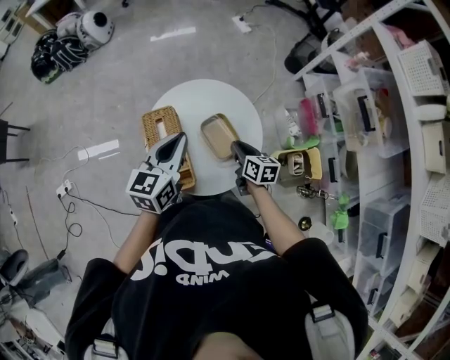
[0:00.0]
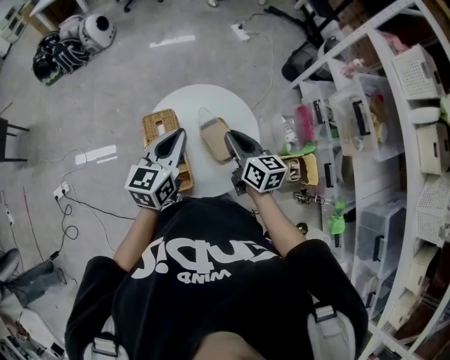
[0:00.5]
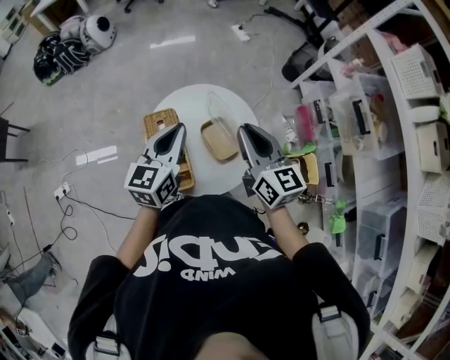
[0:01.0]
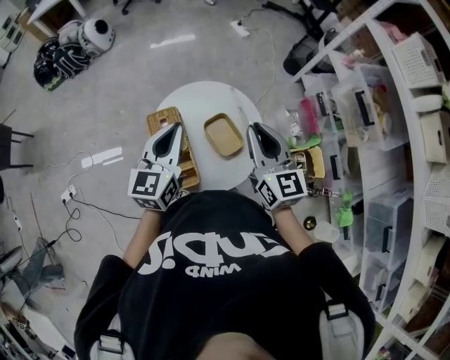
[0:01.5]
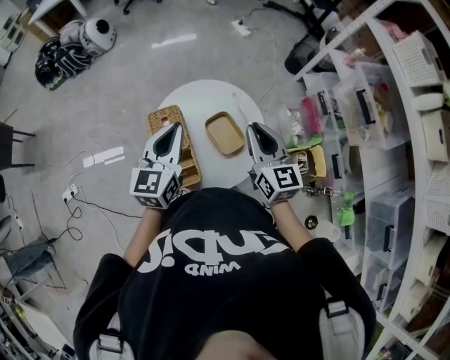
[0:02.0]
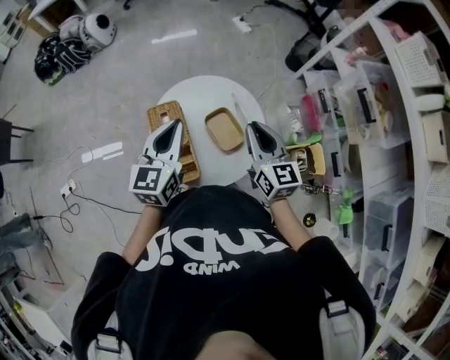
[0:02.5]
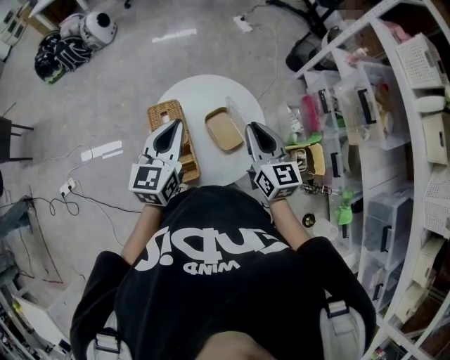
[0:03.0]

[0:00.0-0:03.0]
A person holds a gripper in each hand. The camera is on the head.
0:00.0 to 0:01.5: The right gripper heads upward, covering about 25 cm, and swivels some 40 degrees; the left gripper is displaced upward by approximately 5 cm.
0:01.5 to 0:03.0: The right gripper moves downward, roughly 5 cm.

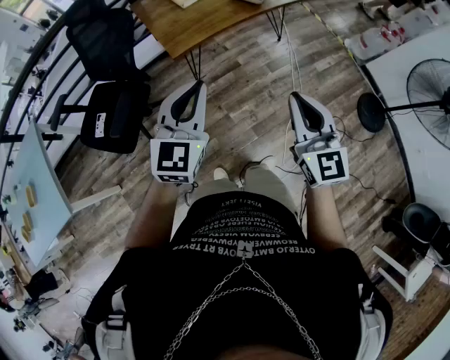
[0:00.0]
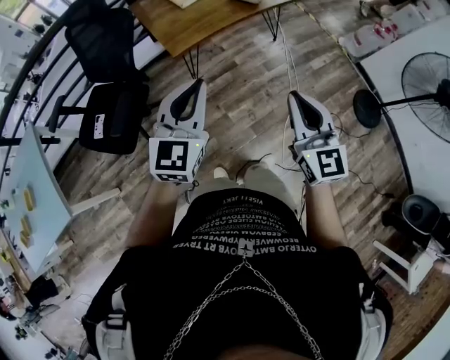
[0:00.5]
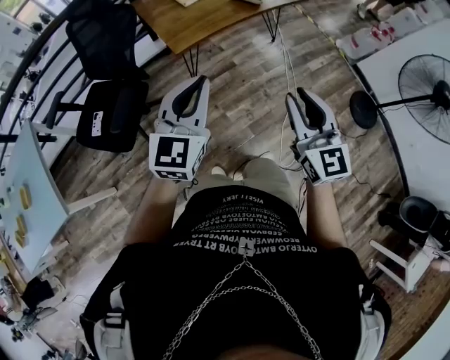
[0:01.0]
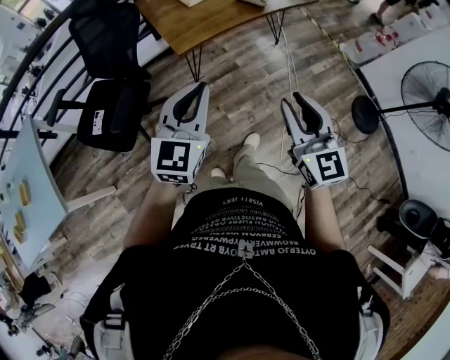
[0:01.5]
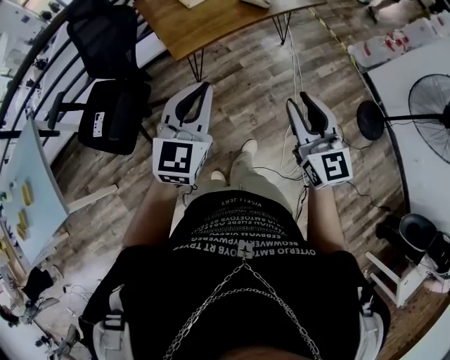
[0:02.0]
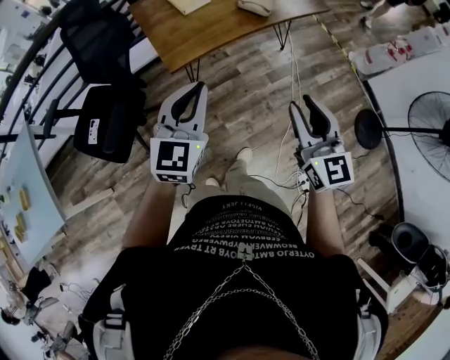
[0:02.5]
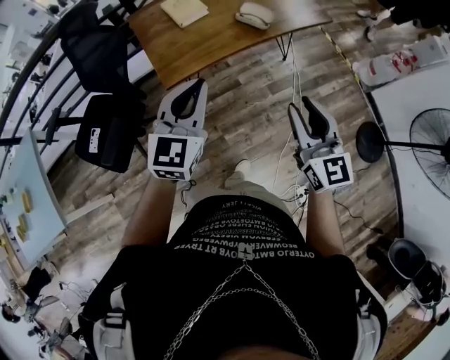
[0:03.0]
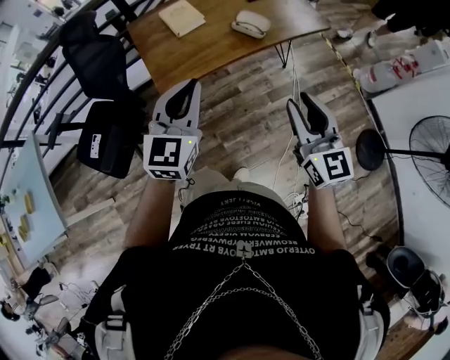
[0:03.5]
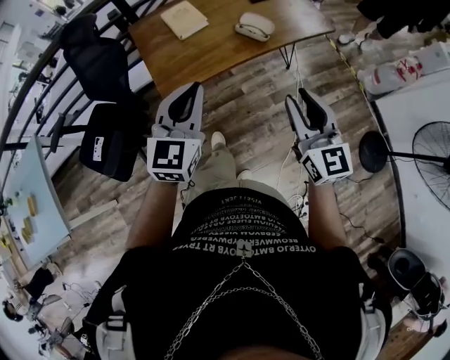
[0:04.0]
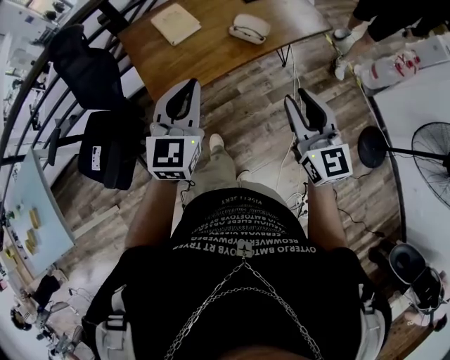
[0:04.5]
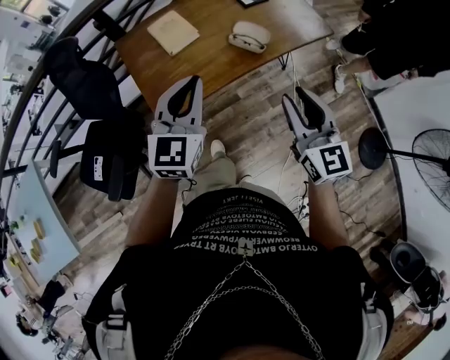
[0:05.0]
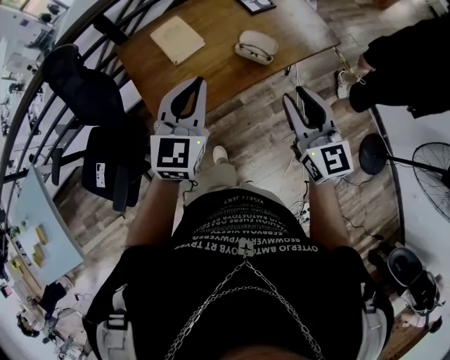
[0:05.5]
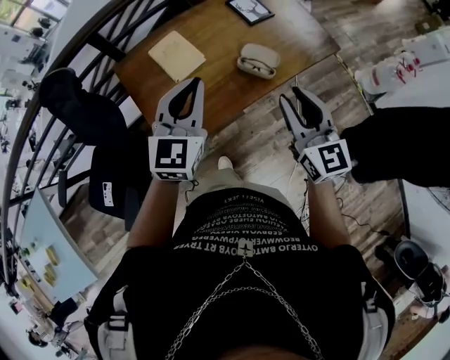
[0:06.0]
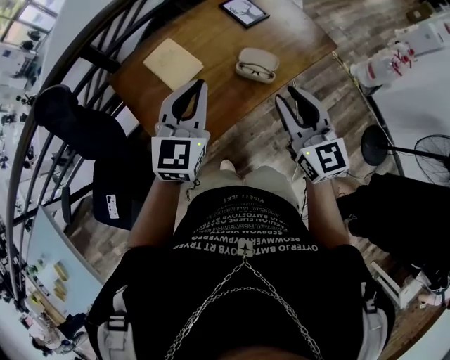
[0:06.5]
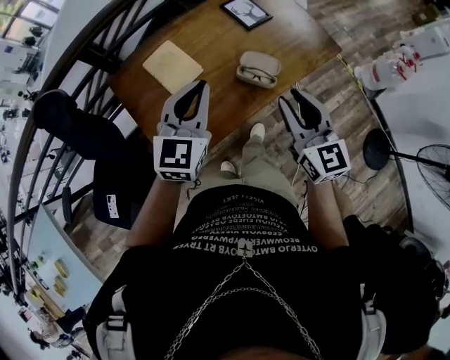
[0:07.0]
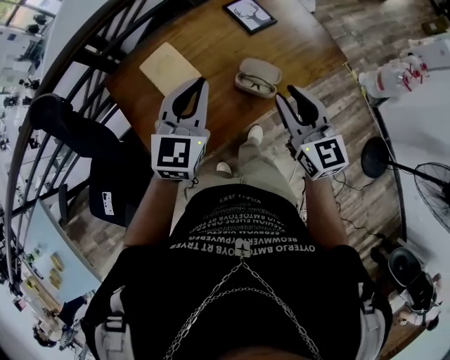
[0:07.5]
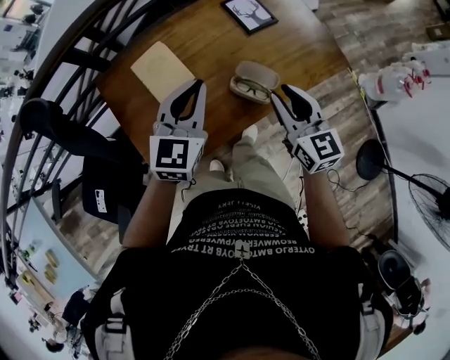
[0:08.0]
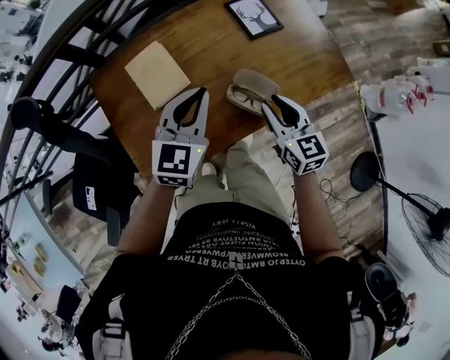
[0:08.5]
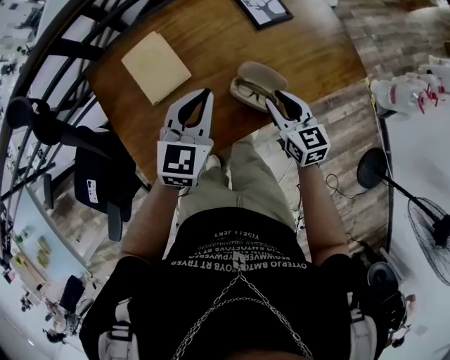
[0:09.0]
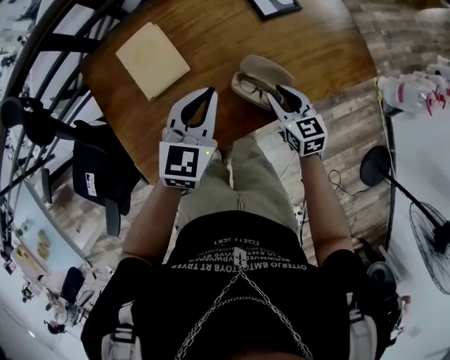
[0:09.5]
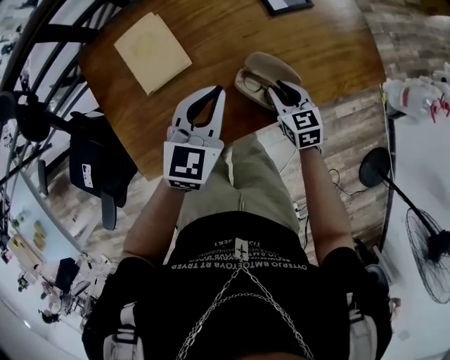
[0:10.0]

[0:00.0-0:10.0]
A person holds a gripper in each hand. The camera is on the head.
0:00.0 to 0:02.0: The right gripper opens.
0:02.0 to 0:04.0: The right gripper travels forward and to the right by approximately 25 cm; the left gripper travels forward by approximately 20 cm.
0:04.0 to 0:06.0: The two grippers go roughly 25 cm forward.
0:06.0 to 0:08.0: Both grippers travel together forward and downward, about 20 cm.
0:08.0 to 0:10.0: The right gripper moves downward, about 25 cm, and turns by approximately 30 degrees, while the left gripper is displaced downward by some 15 cm.

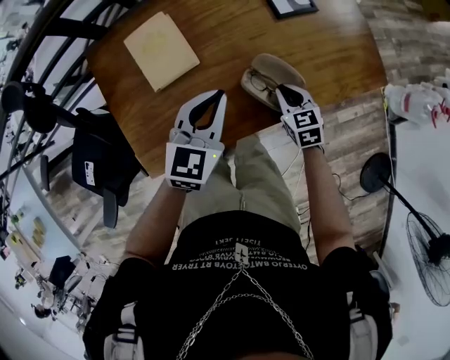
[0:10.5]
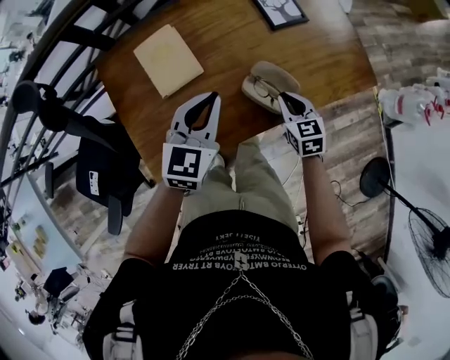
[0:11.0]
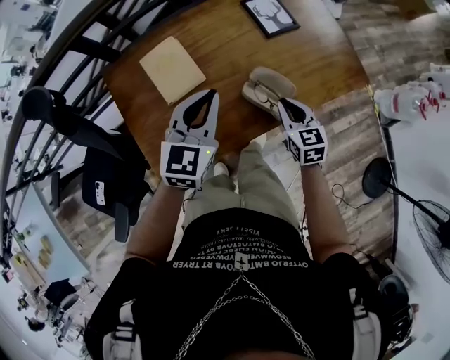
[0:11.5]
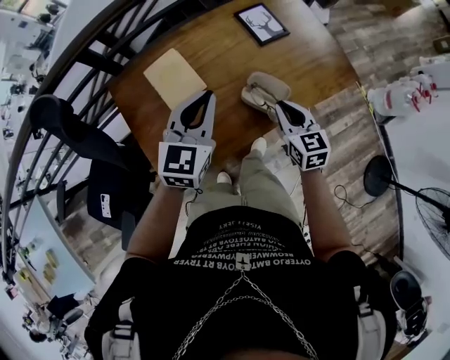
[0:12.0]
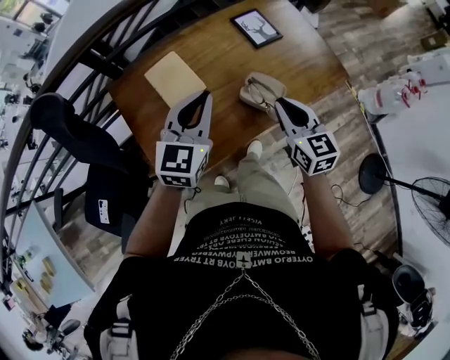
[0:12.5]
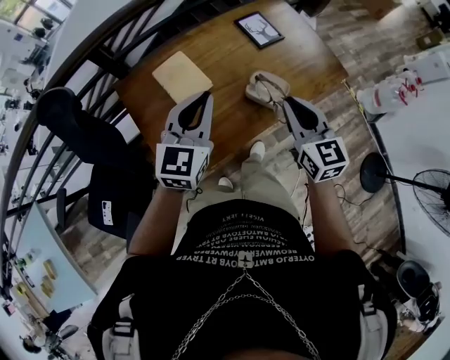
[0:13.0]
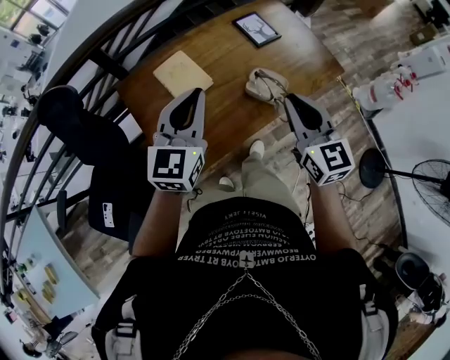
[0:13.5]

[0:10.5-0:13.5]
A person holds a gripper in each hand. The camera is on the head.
0:10.5 to 0:12.0: Both grippers travel together upward, about 15 cm. The right gripper turns by approximately 20 degrees.
0:12.0 to 0:13.5: The right gripper heads upward and backward, covering roughly 20 cm, while the left gripper goes about 15 cm upward, to the left and backward.

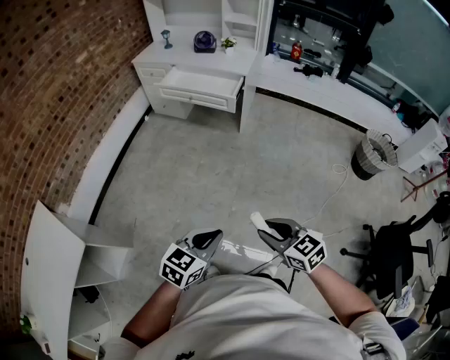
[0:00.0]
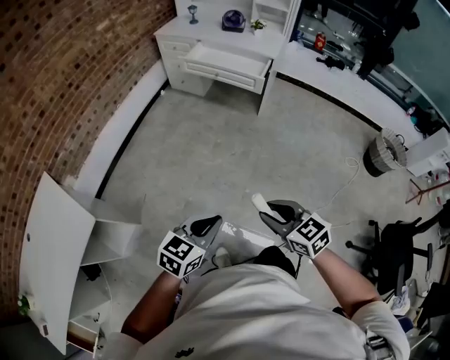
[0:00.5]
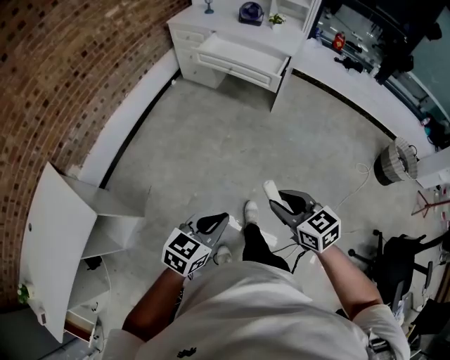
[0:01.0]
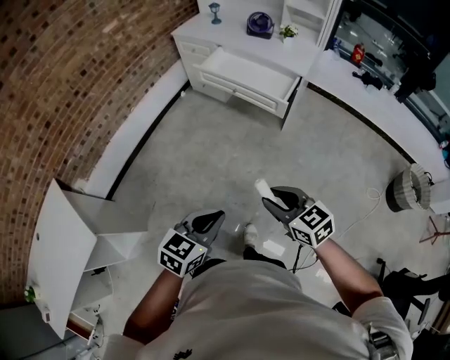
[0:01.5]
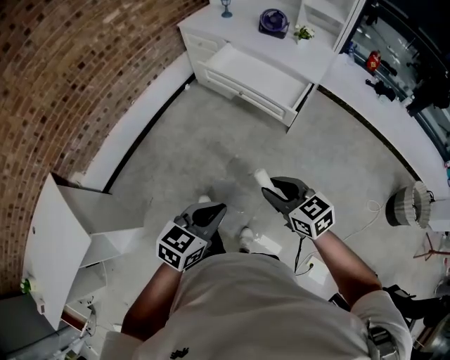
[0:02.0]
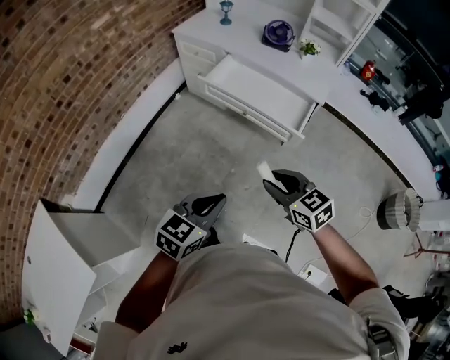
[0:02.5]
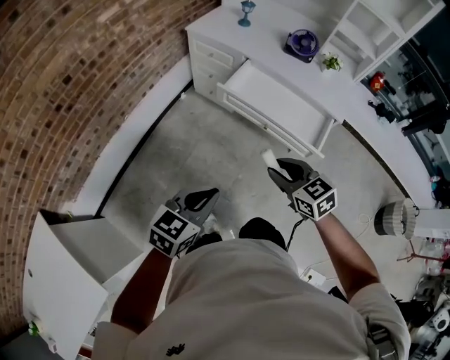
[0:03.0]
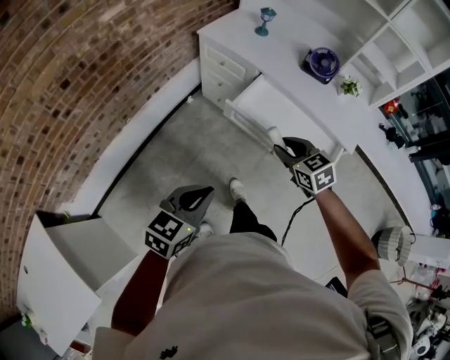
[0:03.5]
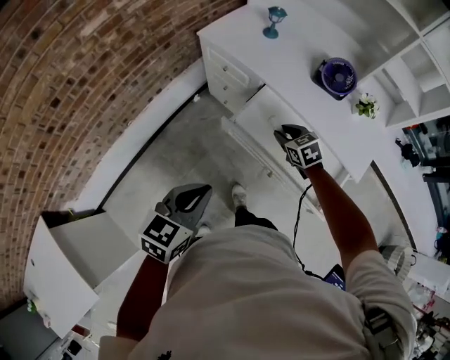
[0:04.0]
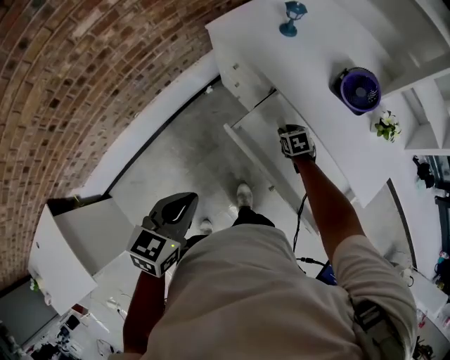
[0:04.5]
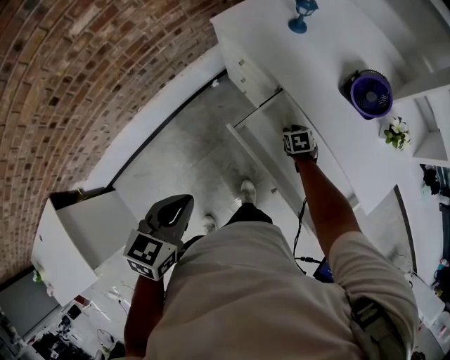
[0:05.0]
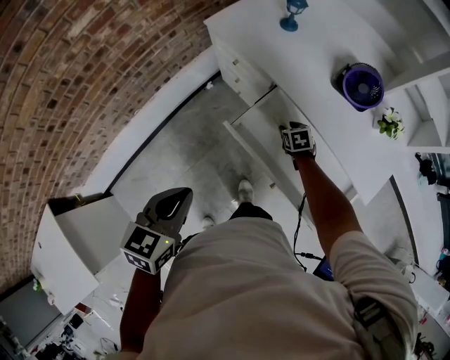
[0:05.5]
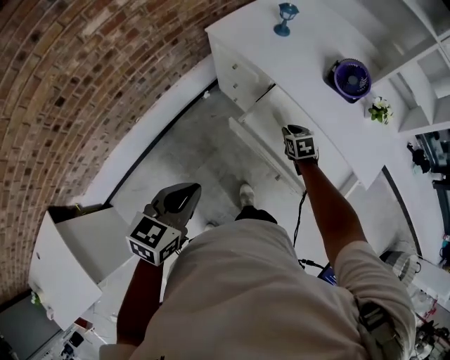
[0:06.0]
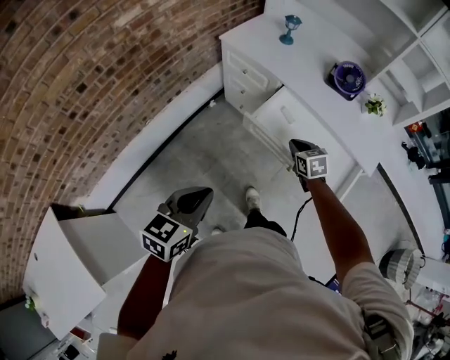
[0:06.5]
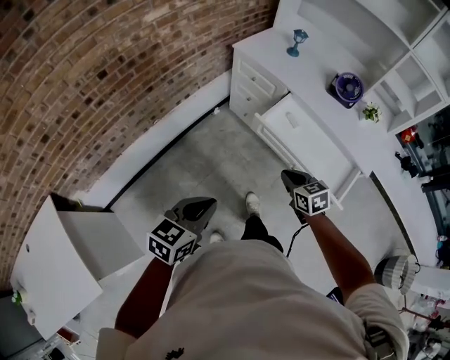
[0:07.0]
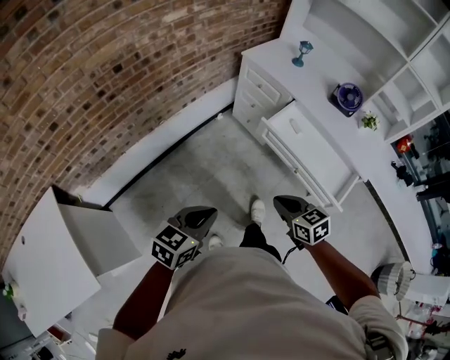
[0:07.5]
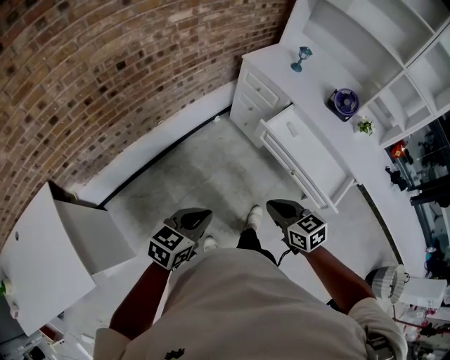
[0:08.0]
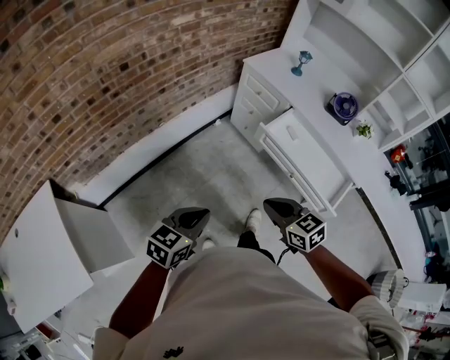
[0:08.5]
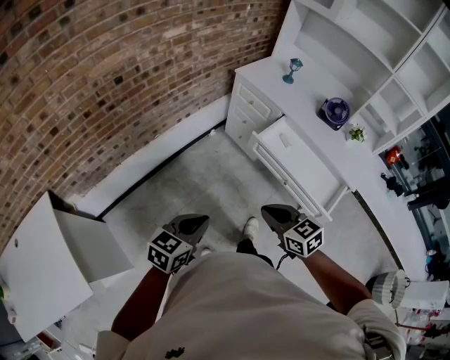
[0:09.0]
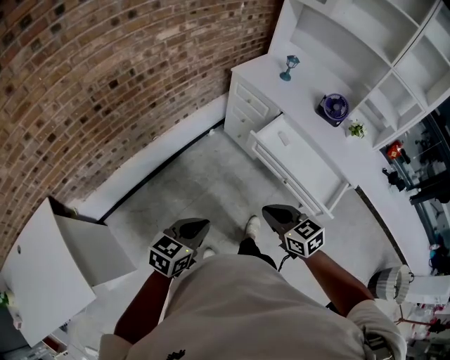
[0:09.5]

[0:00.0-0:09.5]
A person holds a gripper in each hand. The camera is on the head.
0:00.0 to 0:02.0: The grippers both shift forward by roughly 35 cm.
0:02.0 to 0:04.0: The two grippers travel together, forward, approximately 60 cm. The right gripper swivels about 20 degrees.
0:04.0 to 0:05.5: The left gripper travels forward by roughly 5 cm, while the right gripper is displaced downward and forward by approximately 20 cm.
0:05.5 to 0:07.5: The right gripper is displaced backward, upward and to the left by approximately 50 cm, rotates approximately 30 degrees, and closes. Meanwhile the left gripper goes about 30 cm backward and to the left.
0:07.5 to 0:09.5: The right gripper shifts some 5 cm upward.

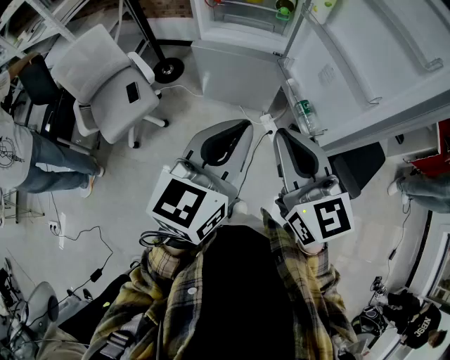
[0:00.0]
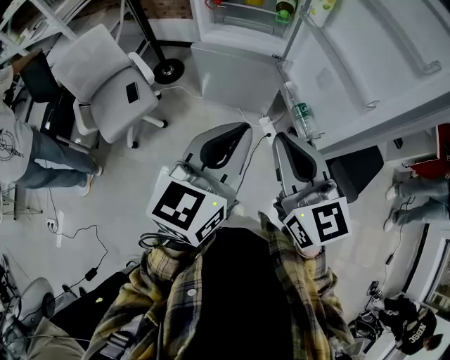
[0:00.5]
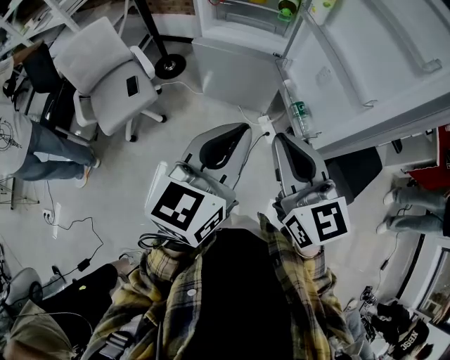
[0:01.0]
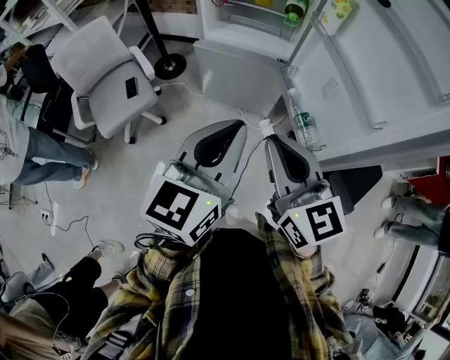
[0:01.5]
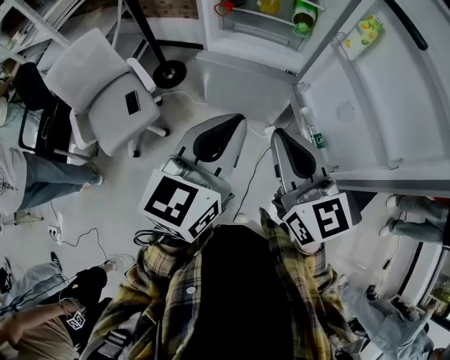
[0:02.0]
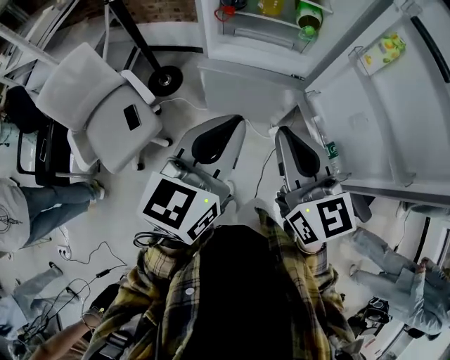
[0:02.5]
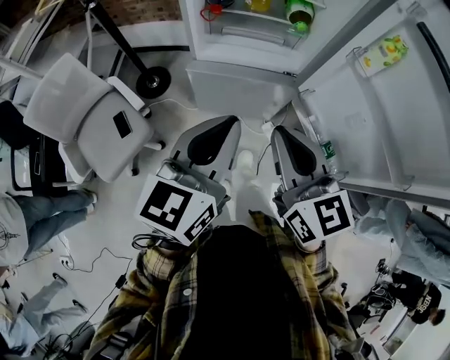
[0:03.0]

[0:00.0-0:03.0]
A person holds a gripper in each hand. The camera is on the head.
0:00.0 to 0:01.5: The grippers stay close to where they were, moving slightly.
0:01.5 to 0:03.0: The two grippers go some 25 cm forward and to the left.
